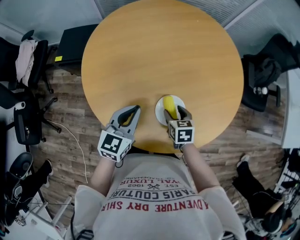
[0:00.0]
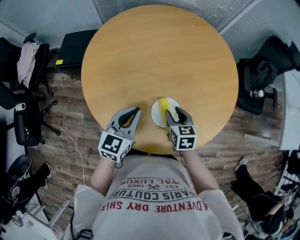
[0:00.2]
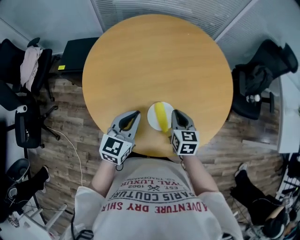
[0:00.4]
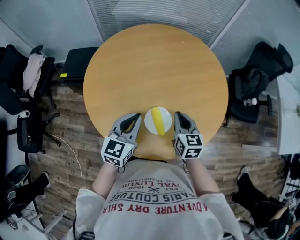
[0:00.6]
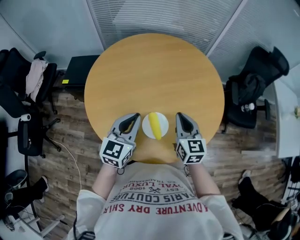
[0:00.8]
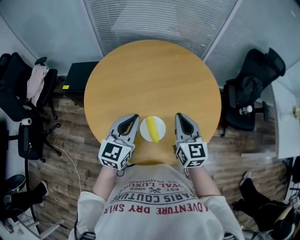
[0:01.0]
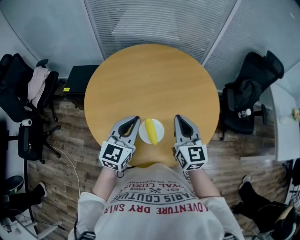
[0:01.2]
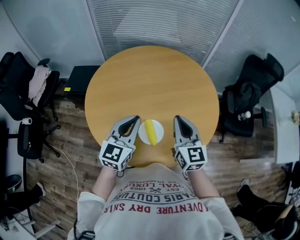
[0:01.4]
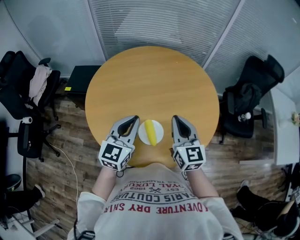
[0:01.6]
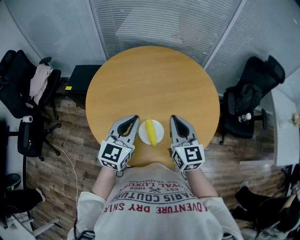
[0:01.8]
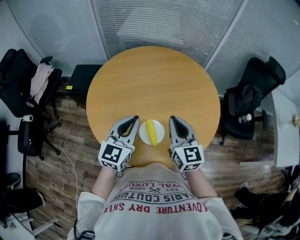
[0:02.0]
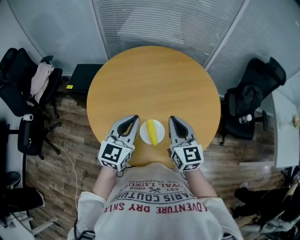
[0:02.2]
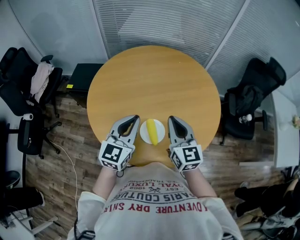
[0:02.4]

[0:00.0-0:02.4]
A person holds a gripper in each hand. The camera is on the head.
0:00.0 to 0:01.2: The right gripper goes some 30 cm upward, tips its fingers upward by roughly 50 degrees, and closes its fingers. The left gripper travels upward and to the right by some 15 cm.
0:01.2 to 0:02.4: There are only small adjustments of the grippers.

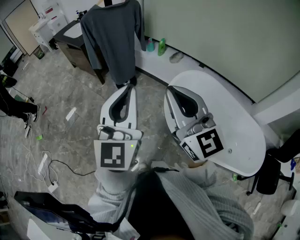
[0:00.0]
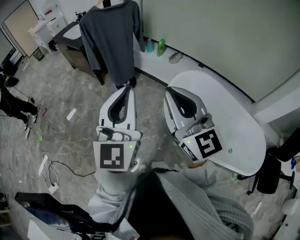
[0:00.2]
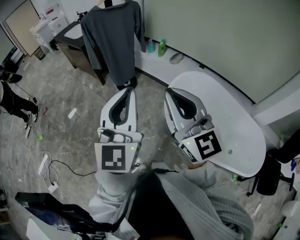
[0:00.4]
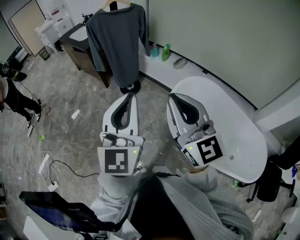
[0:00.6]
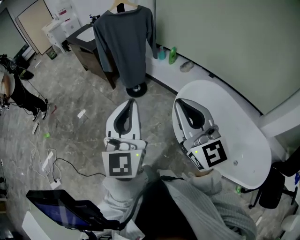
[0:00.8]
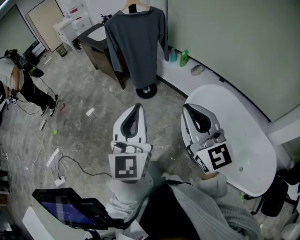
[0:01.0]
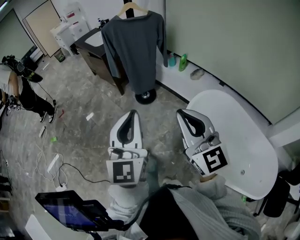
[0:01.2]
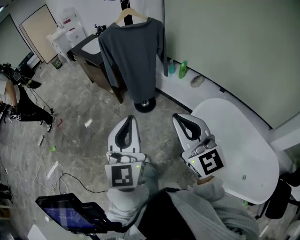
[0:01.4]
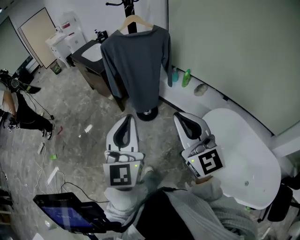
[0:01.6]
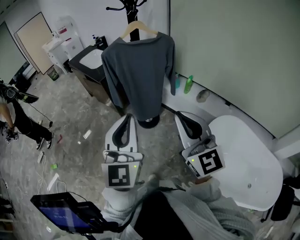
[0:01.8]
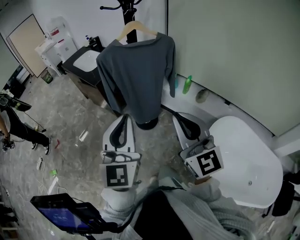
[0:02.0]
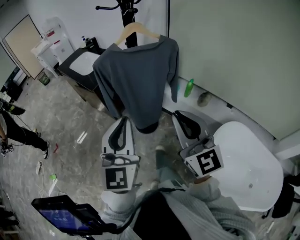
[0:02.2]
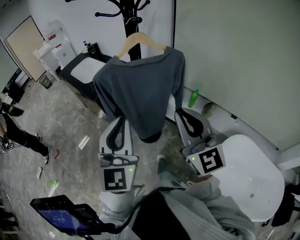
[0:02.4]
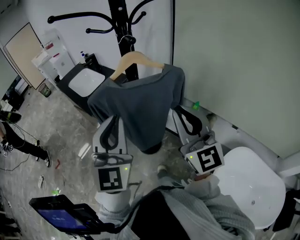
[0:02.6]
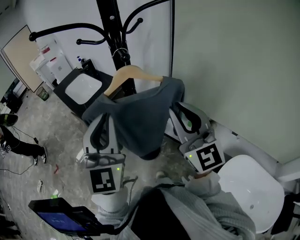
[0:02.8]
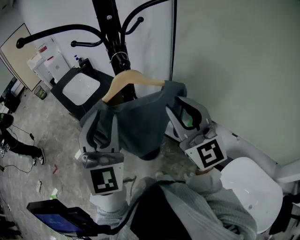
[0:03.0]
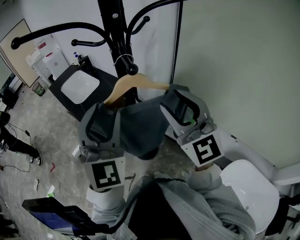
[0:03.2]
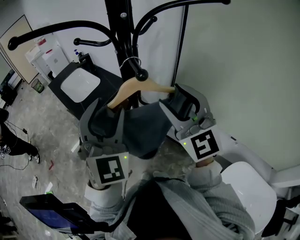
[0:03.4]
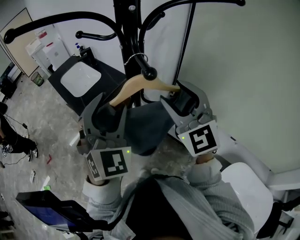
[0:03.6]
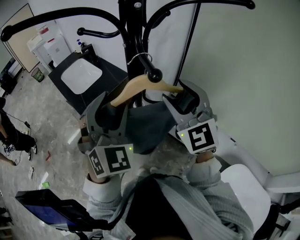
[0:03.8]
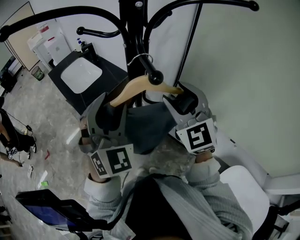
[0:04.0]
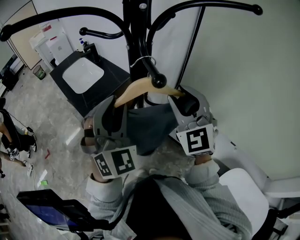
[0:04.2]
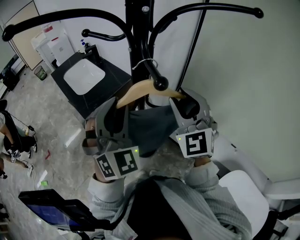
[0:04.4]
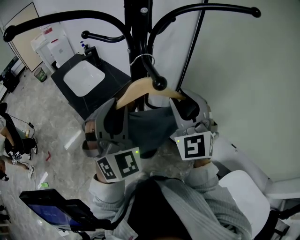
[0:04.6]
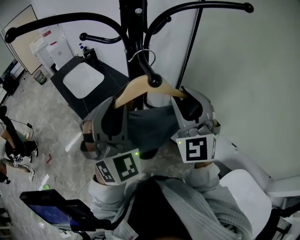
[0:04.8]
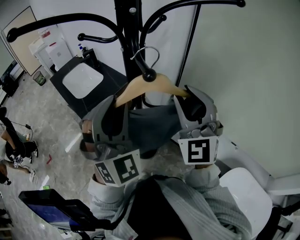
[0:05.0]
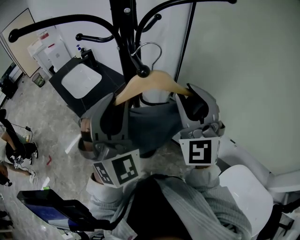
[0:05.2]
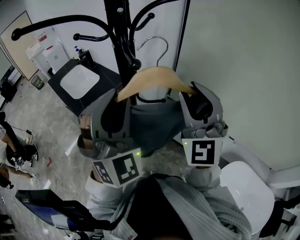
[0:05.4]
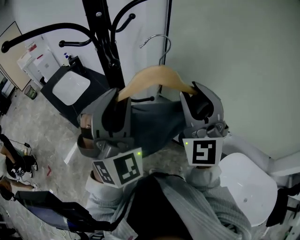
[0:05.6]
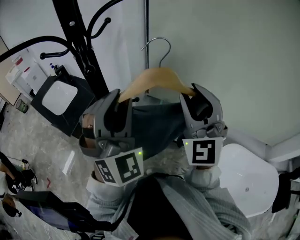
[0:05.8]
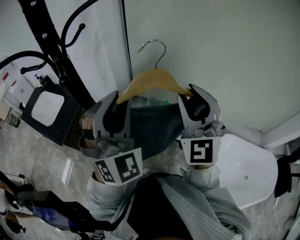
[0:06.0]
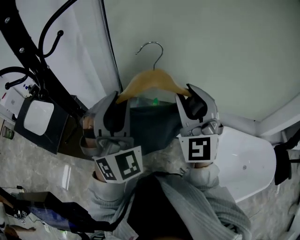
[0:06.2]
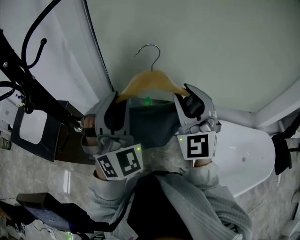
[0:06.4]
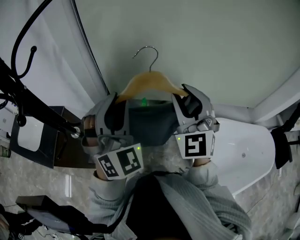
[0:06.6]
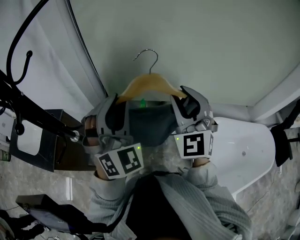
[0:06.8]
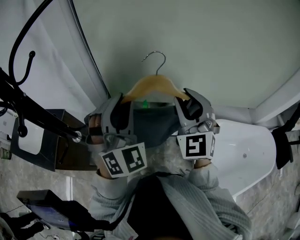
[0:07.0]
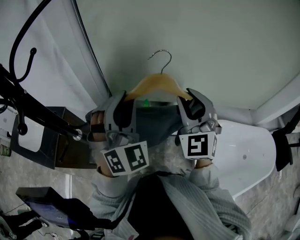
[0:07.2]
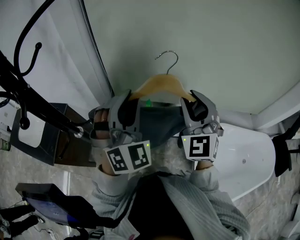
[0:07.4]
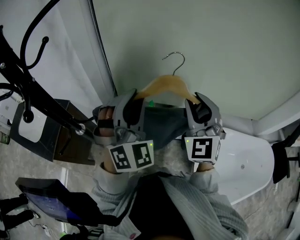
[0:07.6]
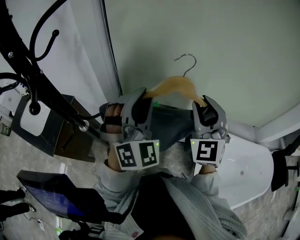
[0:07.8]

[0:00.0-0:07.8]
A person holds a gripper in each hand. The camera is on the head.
0:00.0 to 0:01.6: The left gripper travels forward and to the left by some 20 cm; the right gripper shifts about 20 cm forward.
0:01.6 to 0:03.2: Both grippers are carried forward, about 50 cm. The right gripper opens; the left gripper swivels approximately 30 degrees, and opens up.
0:03.2 to 0:04.6: The grippers both shift forward by approximately 5 cm. The right gripper turns by some 20 degrees.
0:04.6 to 0:06.2: The left gripper changes place by roughly 25 cm, and changes its angle by about 30 degrees. The right gripper changes place by roughly 25 cm, and swivels approximately 30 degrees.
0:06.2 to 0:07.8: The right gripper heads to the right, covering roughly 5 cm. The left gripper shifts roughly 10 cm forward and to the right.

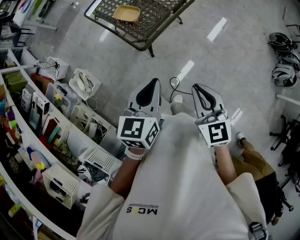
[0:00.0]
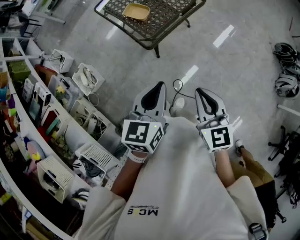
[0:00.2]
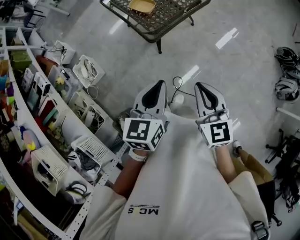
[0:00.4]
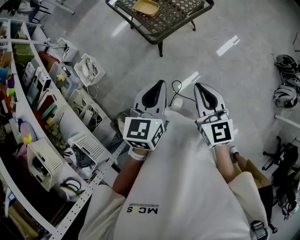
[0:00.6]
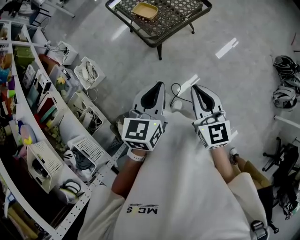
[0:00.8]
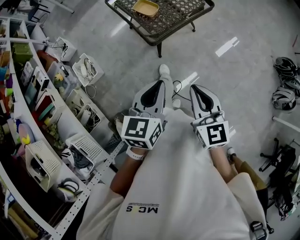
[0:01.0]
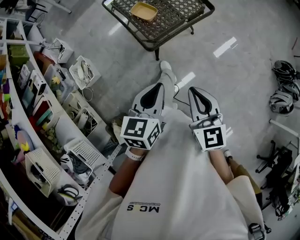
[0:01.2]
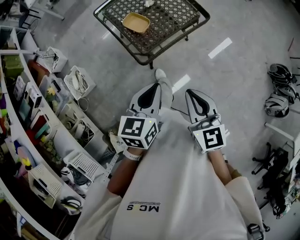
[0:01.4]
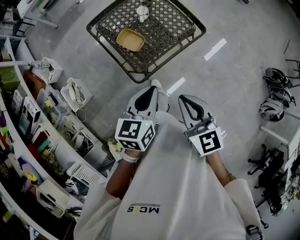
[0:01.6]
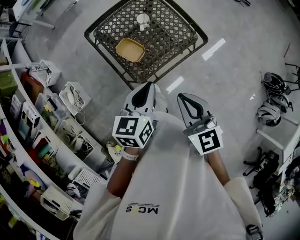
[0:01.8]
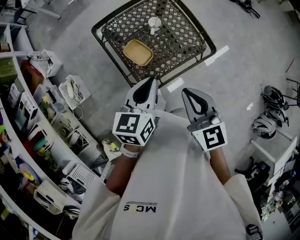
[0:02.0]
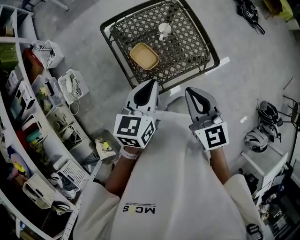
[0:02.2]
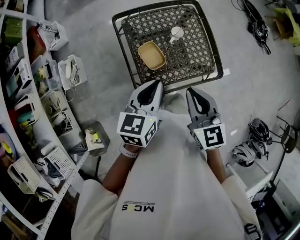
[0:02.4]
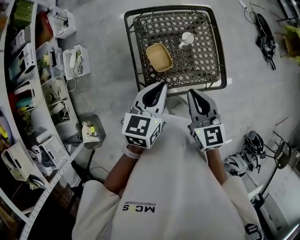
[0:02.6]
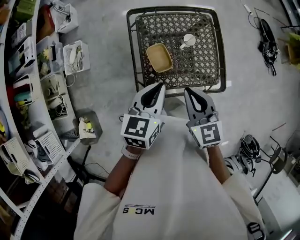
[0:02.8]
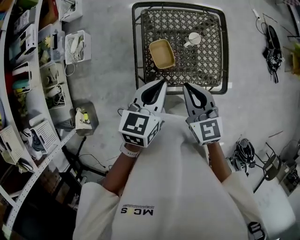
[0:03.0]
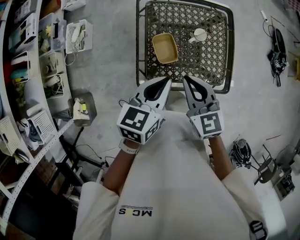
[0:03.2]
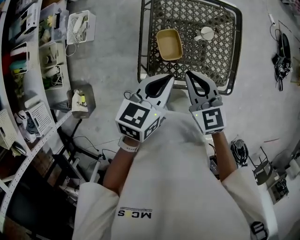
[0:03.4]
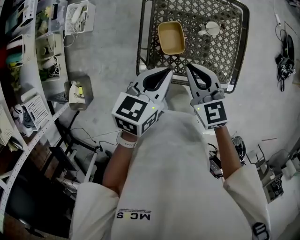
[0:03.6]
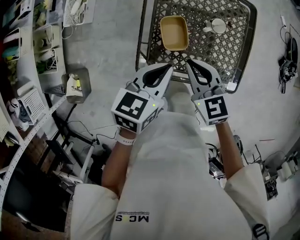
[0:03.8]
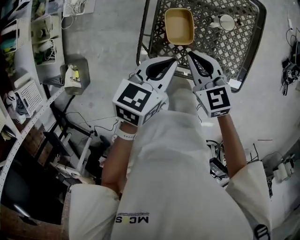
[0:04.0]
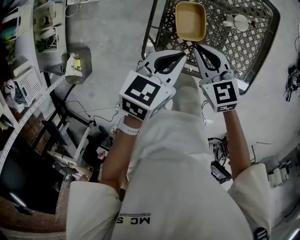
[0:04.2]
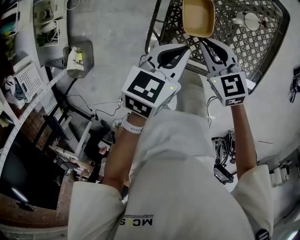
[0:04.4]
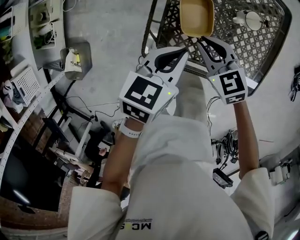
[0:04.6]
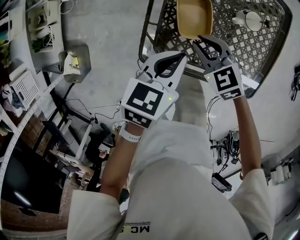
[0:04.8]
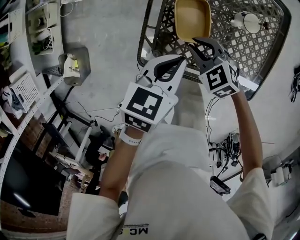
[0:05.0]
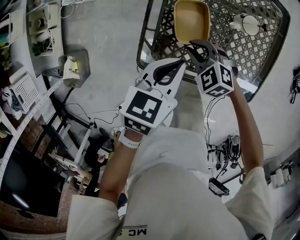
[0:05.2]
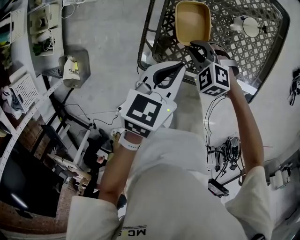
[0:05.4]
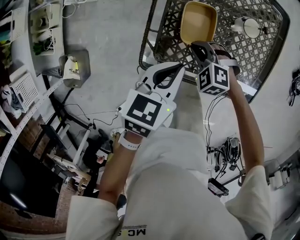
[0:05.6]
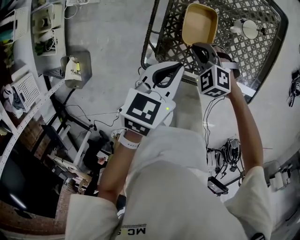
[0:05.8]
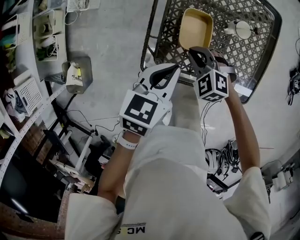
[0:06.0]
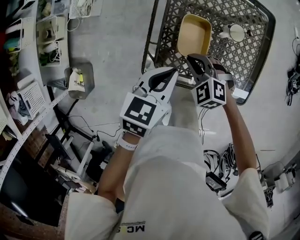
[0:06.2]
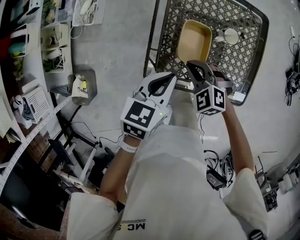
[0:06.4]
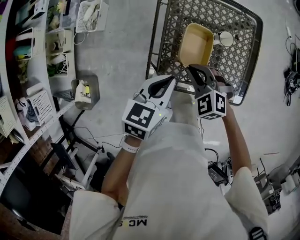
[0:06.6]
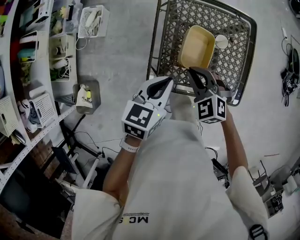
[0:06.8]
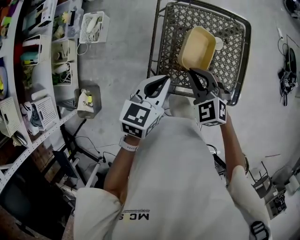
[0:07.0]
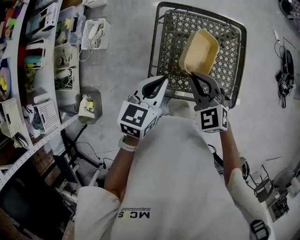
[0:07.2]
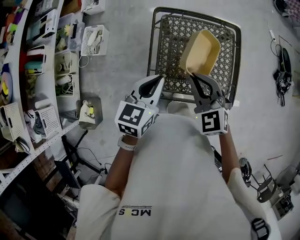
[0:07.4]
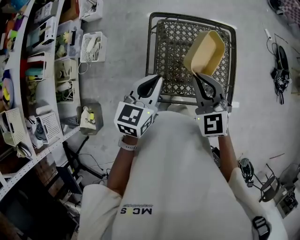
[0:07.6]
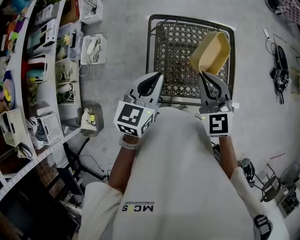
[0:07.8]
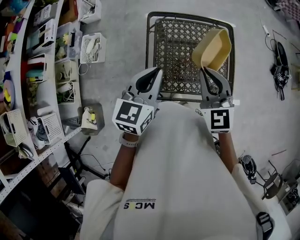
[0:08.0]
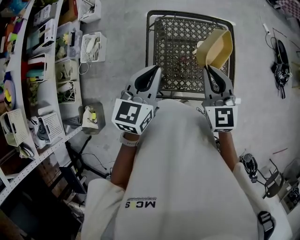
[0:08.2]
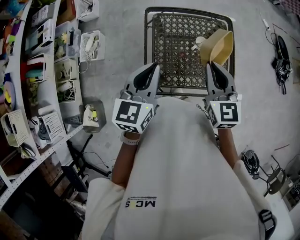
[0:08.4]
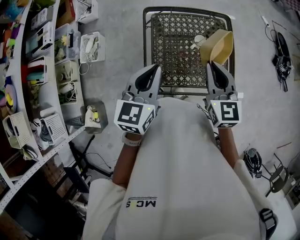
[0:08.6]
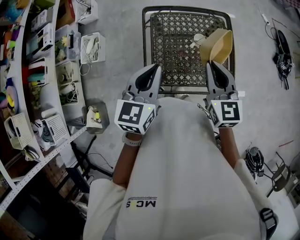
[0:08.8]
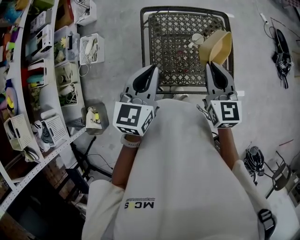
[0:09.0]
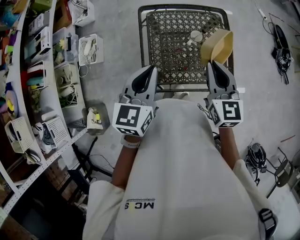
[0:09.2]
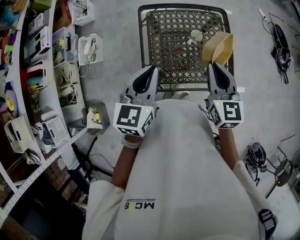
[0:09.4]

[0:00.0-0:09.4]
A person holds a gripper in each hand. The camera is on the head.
0:00.0 to 0:01.6: Both grippers travel together forward, some 20 cm.
0:01.6 to 0:03.2: The right gripper moves about 30 cm, and swivels approximately 40 degrees. Meanwhile the left gripper moves approximately 20 cm, and turns by some 30 degrees.
0:03.2 to 0:04.8: Both grippers move downward, approximately 20 cm. The right gripper rotates roughly 40 degrees.
0:04.8 to 0:06.2: The right gripper moves about 5 cm downward and comes back, and rotates about 30 degrees.
0:06.2 to 0:07.8: The left gripper moves upward, some 20 cm, and rotates about 20 degrees. Meanwhile the right gripper travels upward by roughly 30 cm, and tips its fingers upward by roughly 30 degrees.
0:07.8 to 0:09.4: The right gripper shifts some 10 cm to the right, and turns by approximately 30 degrees.

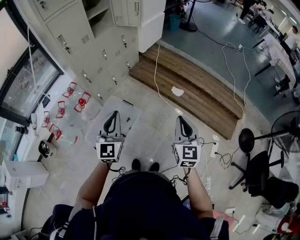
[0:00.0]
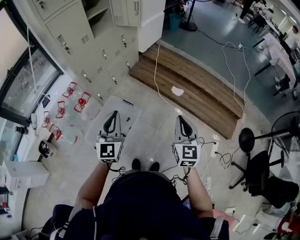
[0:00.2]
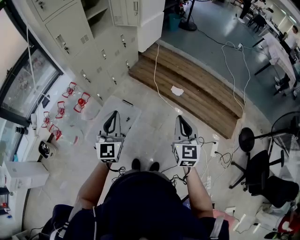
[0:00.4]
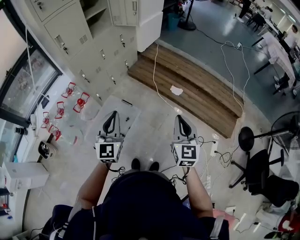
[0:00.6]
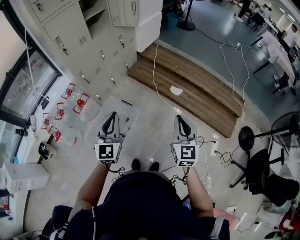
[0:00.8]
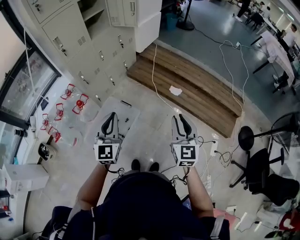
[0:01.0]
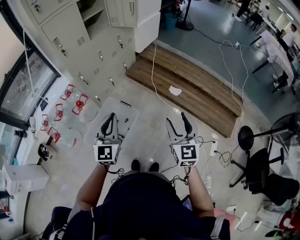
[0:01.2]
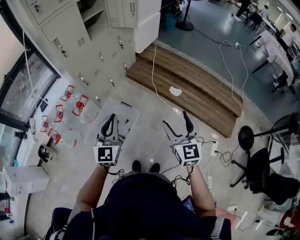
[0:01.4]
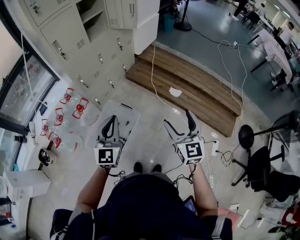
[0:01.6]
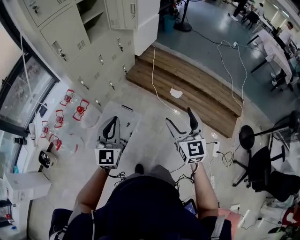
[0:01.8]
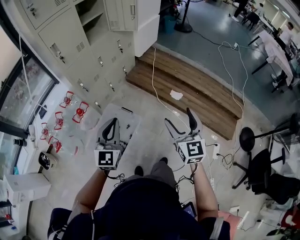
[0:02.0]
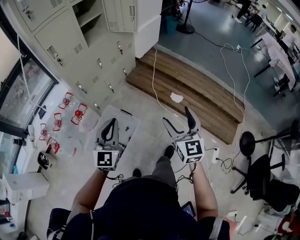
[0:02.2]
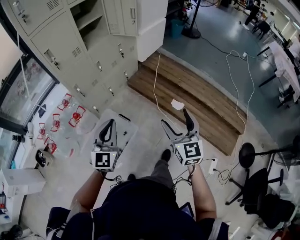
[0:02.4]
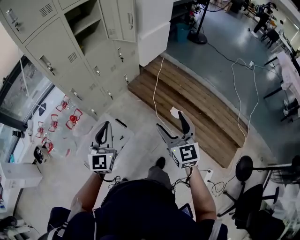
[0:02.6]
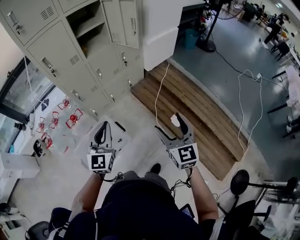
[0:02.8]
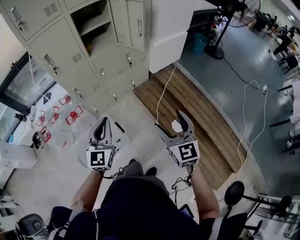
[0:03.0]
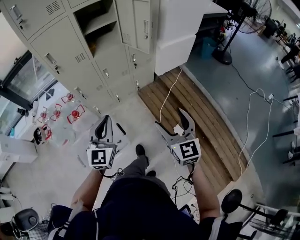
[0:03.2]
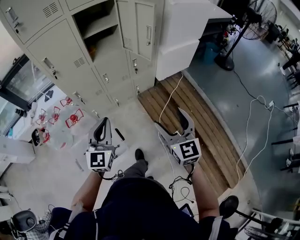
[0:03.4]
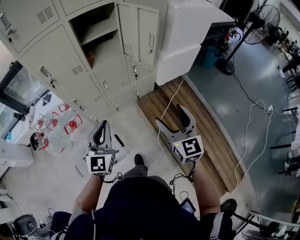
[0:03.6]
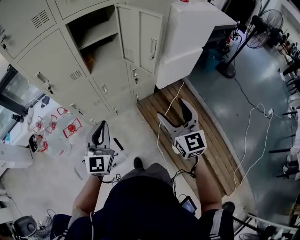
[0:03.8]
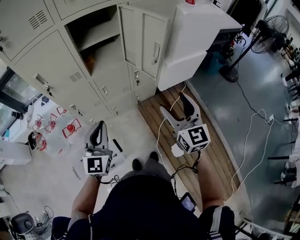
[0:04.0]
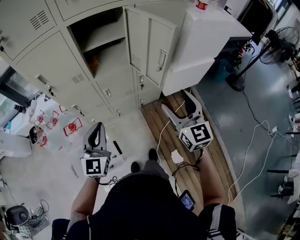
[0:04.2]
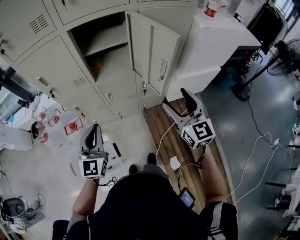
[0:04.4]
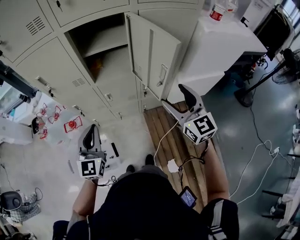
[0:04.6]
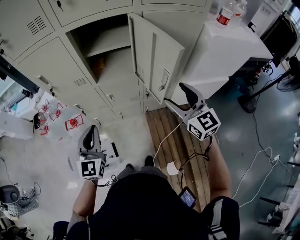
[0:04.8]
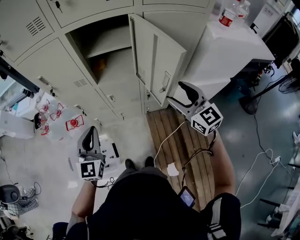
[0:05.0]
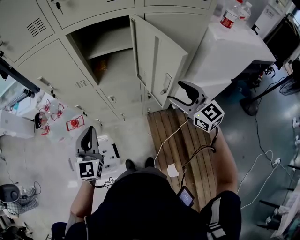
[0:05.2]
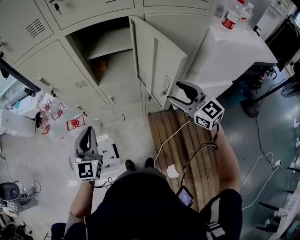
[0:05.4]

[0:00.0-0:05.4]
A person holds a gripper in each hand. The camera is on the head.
0:00.0 to 0:01.4: The right gripper opens.
0:01.4 to 0:02.8: The two grippers go roughly 30 cm forward and to the right. The right gripper turns by roughly 20 degrees.
0:02.8 to 0:04.0: The two grippers go approximately 30 cm forward.
0:04.0 to 0:05.4: The left gripper moves roughly 10 cm, and turns by about 20 degrees. The right gripper moves about 25 cm, and changes its angle by roughly 40 degrees.
